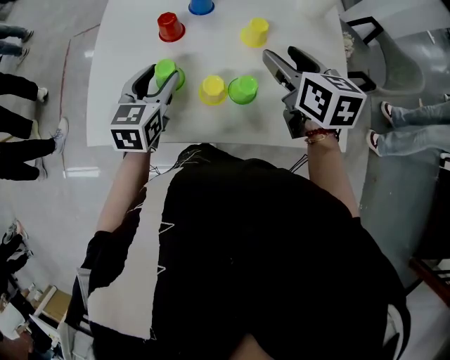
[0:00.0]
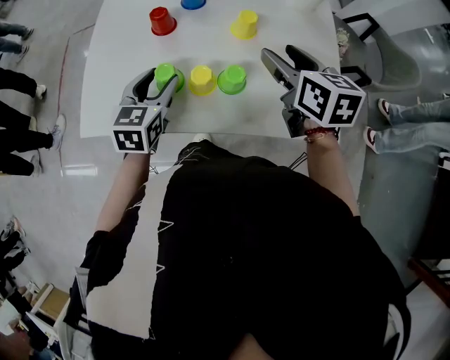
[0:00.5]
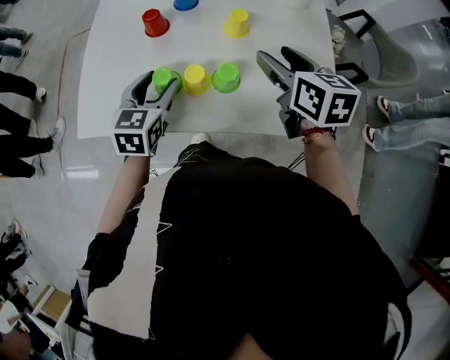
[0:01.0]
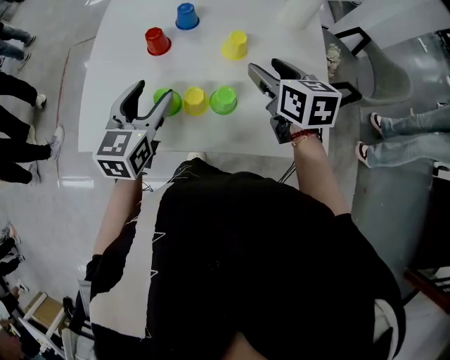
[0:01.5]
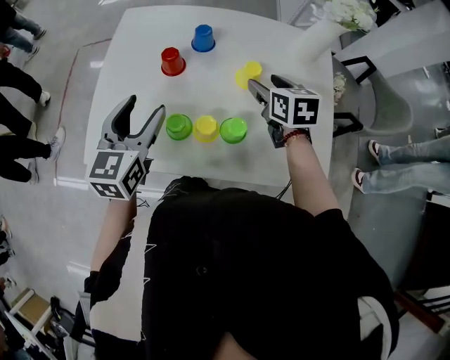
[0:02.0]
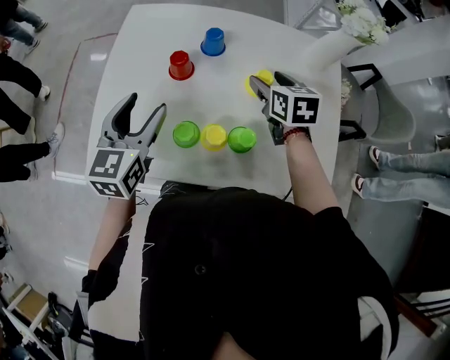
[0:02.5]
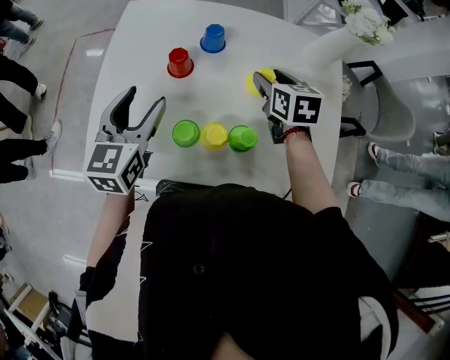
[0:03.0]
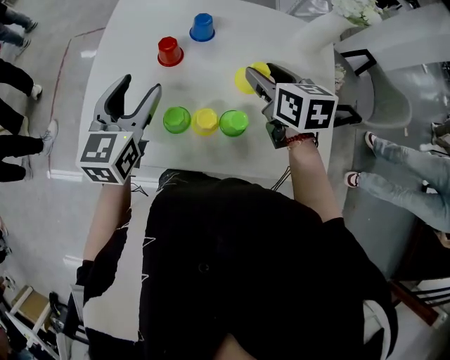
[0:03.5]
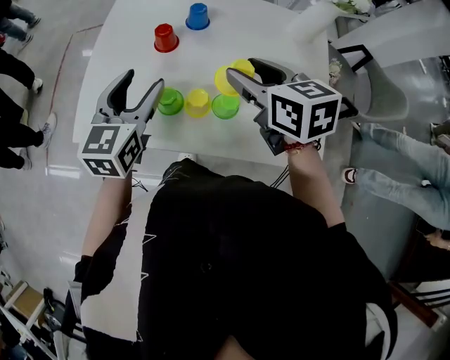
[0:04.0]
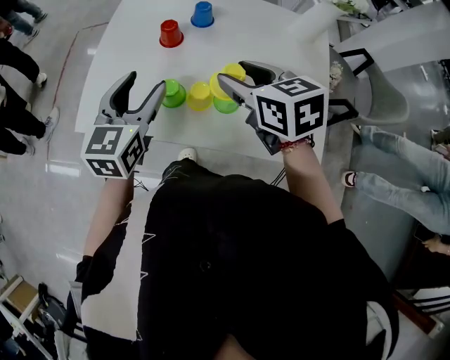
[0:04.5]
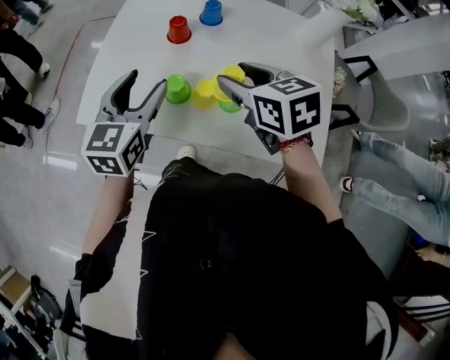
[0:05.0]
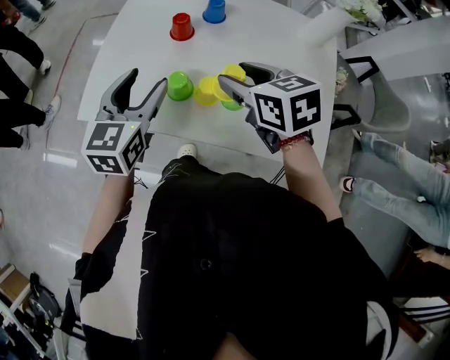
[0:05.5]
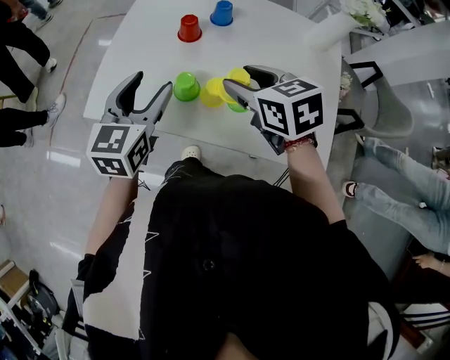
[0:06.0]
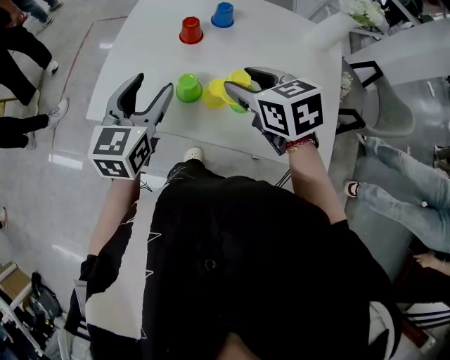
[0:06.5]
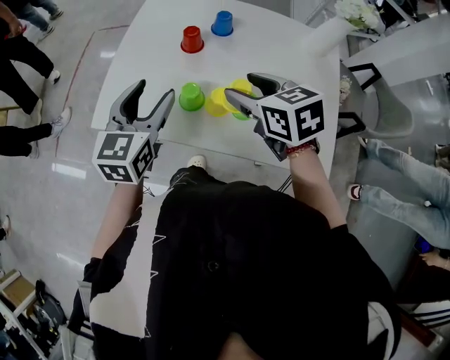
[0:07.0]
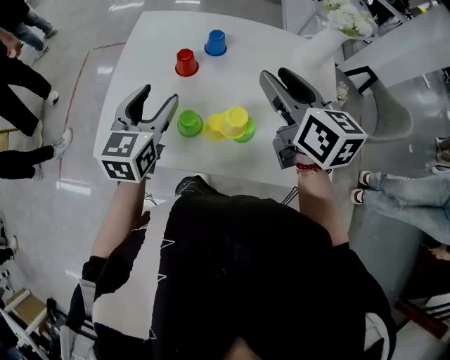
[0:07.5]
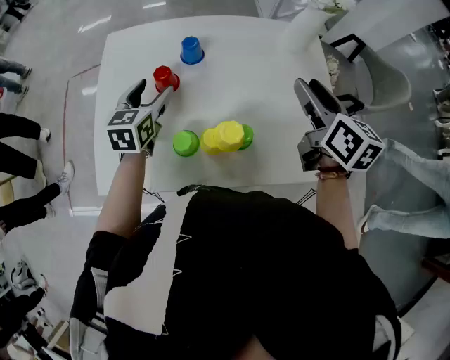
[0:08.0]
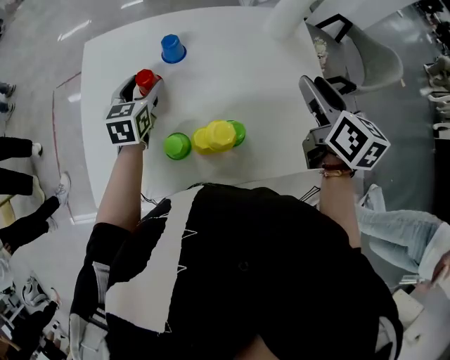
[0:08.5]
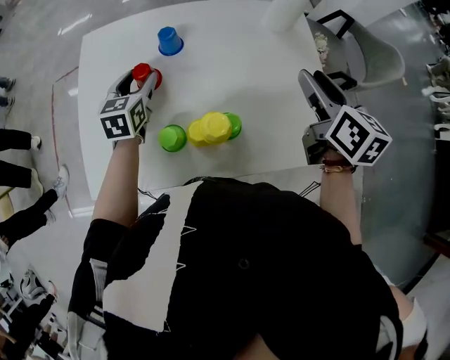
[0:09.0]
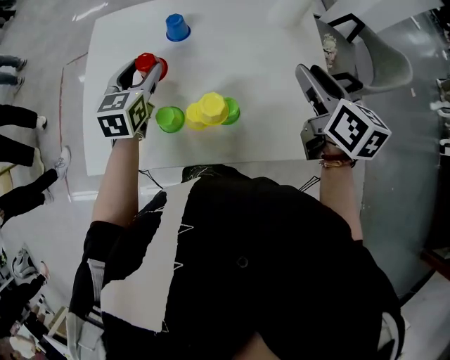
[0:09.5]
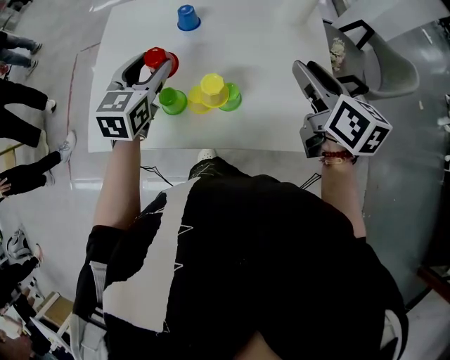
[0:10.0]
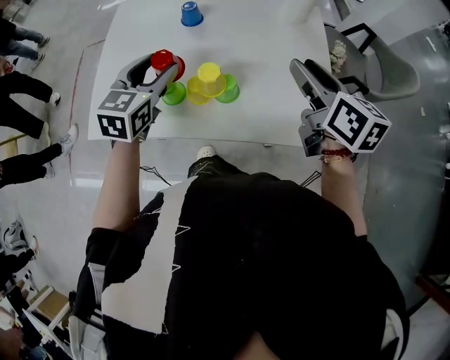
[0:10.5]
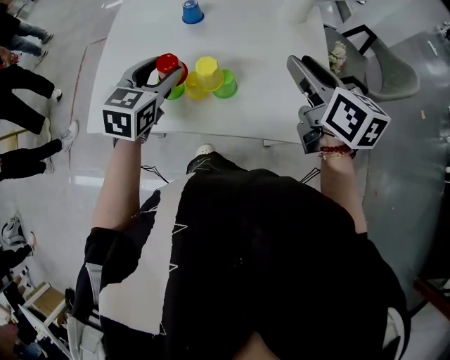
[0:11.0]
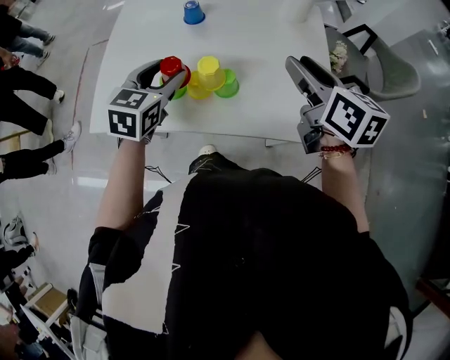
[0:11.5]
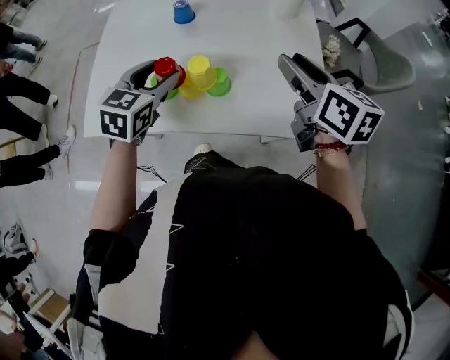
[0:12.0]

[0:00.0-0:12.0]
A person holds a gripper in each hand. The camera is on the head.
0:00.0 to 0:02.0: The right gripper heads forward and downward, covering some 10 cm; the left gripper moves upward, roughly 10 cm.
0:02.0 to 0:04.0: The right gripper heads upward, backward and to the left, covering some 15 cm.
0:04.0 to 0:06.0: The right gripper goes about 5 cm to the left. Meanwhile the left gripper moves some 5 cm.
0:06.0 to 0:08.0: The left gripper shifts by approximately 20 cm. Meanwhile the right gripper ends up some 20 cm from where it was, and changes its angle by some 50 degrees.
0:08.0 to 0:10.0: The right gripper moves backward, some 5 cm, while the left gripper heads backward, upward and to the right, covering approximately 10 cm.
0:10.0 to 0:12.0: The left gripper moves backward, approximately 5 cm.

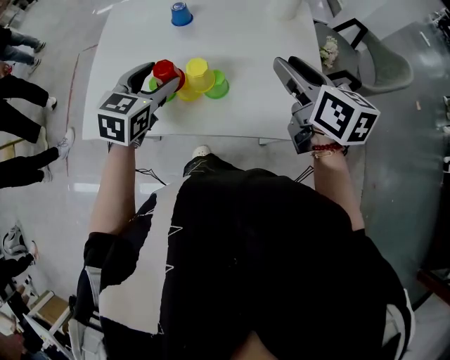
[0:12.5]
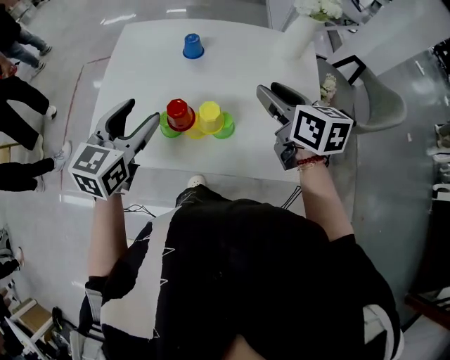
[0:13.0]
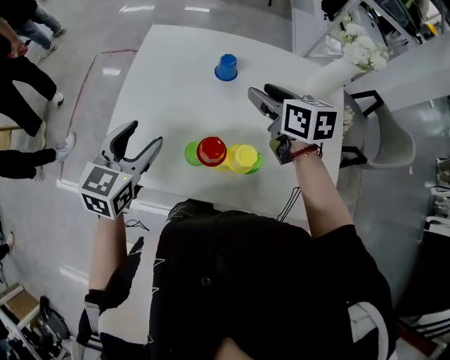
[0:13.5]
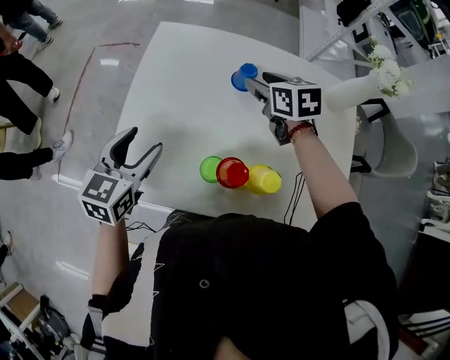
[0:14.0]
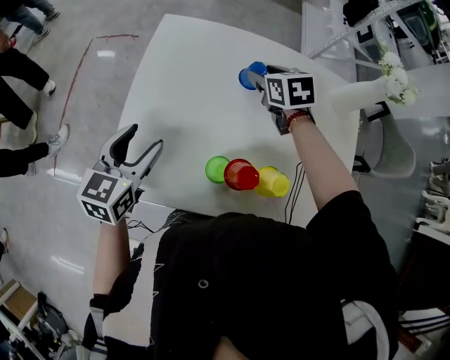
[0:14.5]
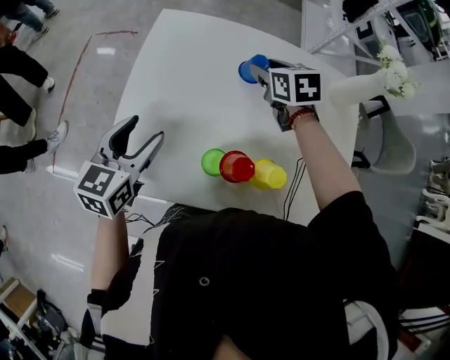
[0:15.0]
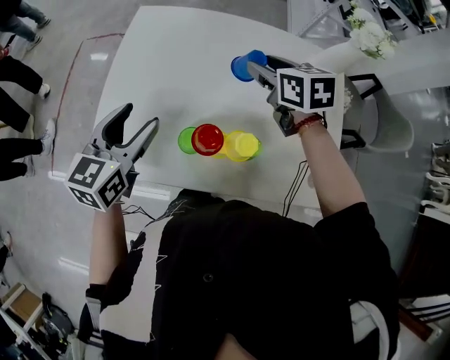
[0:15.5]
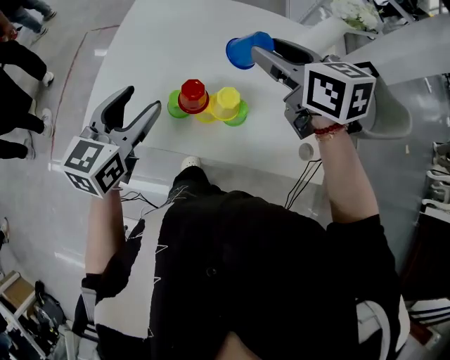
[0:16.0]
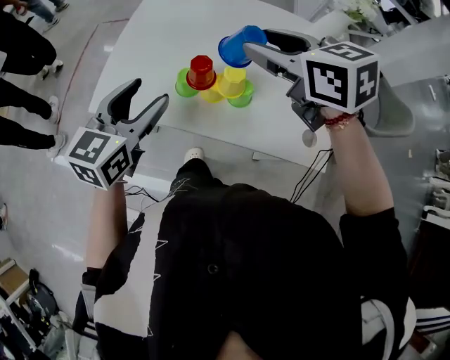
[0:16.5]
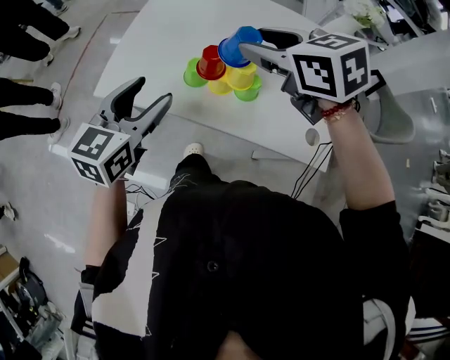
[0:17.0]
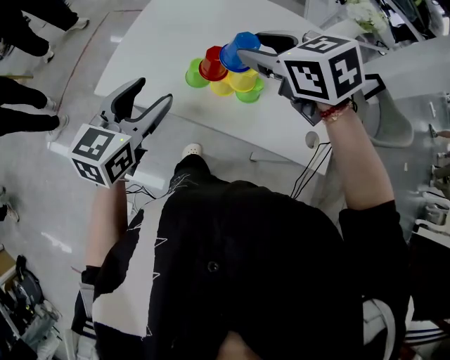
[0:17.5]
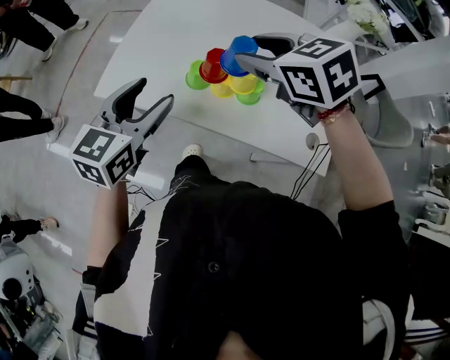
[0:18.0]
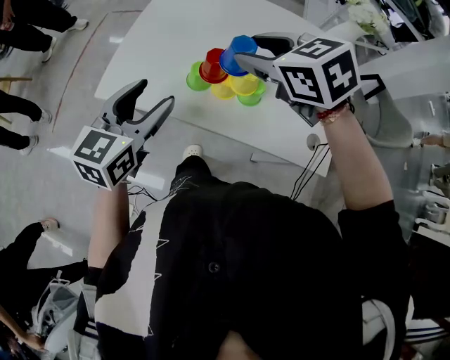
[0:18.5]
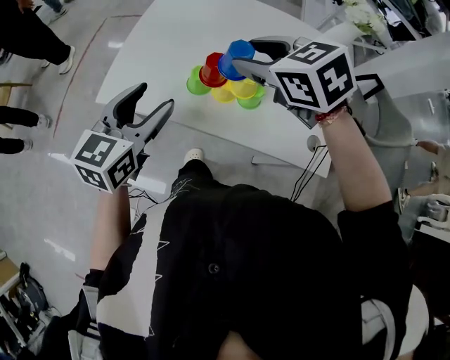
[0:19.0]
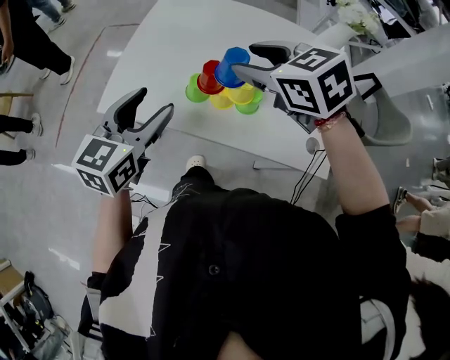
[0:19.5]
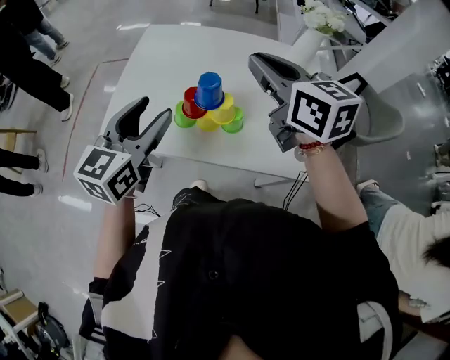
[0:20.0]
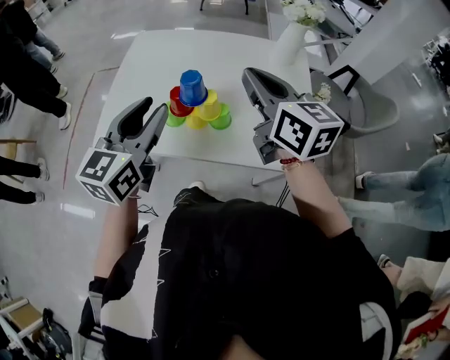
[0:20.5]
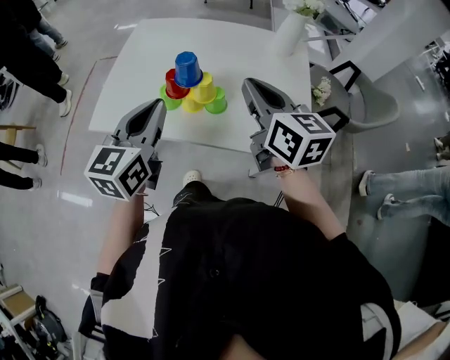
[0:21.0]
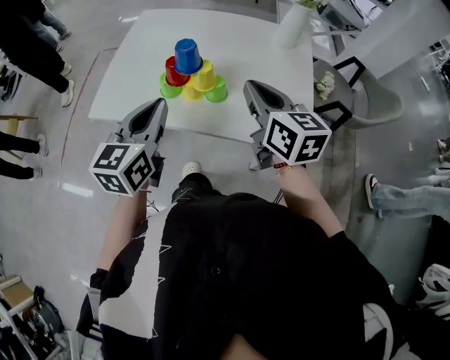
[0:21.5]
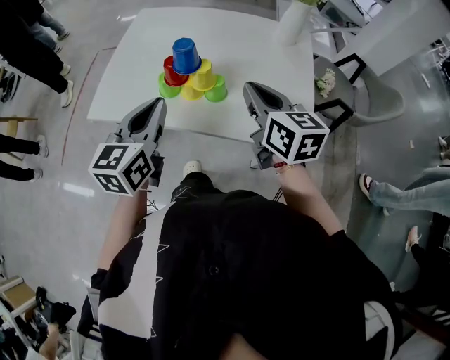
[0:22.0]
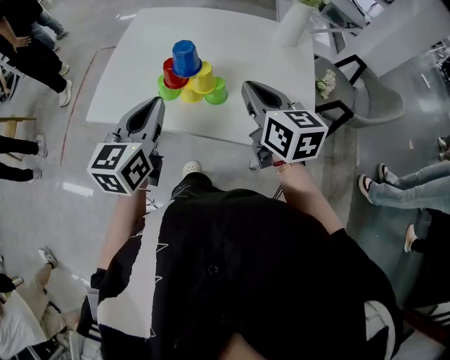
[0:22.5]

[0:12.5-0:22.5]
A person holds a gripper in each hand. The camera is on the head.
0:12.5 to 0:14.5: The right gripper goes approximately 40 cm forward, to the left and downward, and swivels approximately 40 degrees; the left gripper heads to the left, covering roughly 20 cm.
0:14.5 to 0:16.5: The left gripper is displaced backward, to the right and upward by approximately 20 cm. The right gripper moves backward and upward, about 30 cm, and changes its angle by some 30 degrees.
0:16.5 to 0:18.5: The right gripper changes place by about 5 cm.
0:18.5 to 0:20.5: The left gripper travels upward and to the right by roughly 10 cm, and closes its fingers; the right gripper travels to the right and upward by roughly 15 cm, points its fingers approximately 40 degrees further upward, and closes.
0:20.5 to 0:22.5: The right gripper goes some 10 cm downward; the left gripper travels downward by about 5 cm, and closes its fingers.

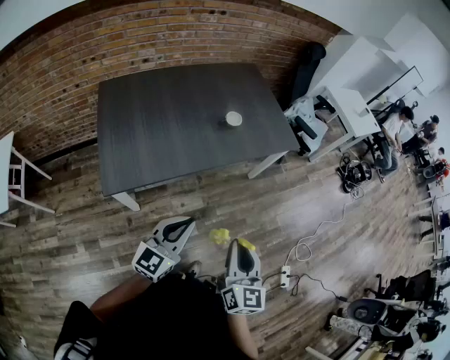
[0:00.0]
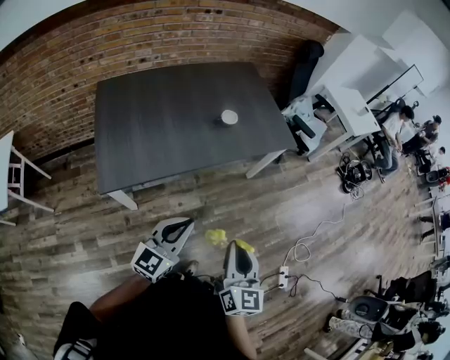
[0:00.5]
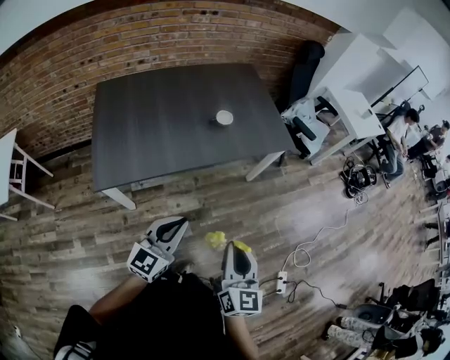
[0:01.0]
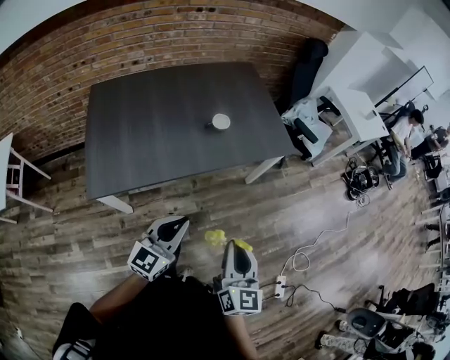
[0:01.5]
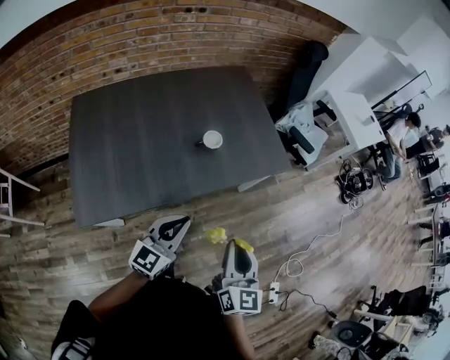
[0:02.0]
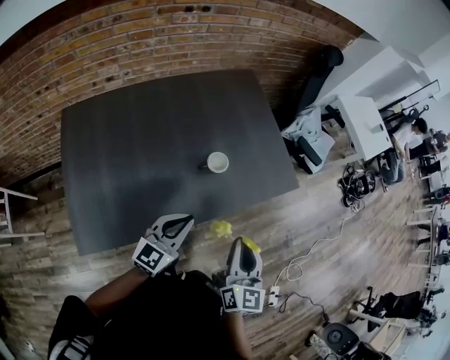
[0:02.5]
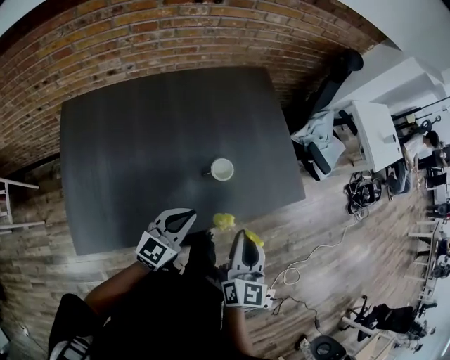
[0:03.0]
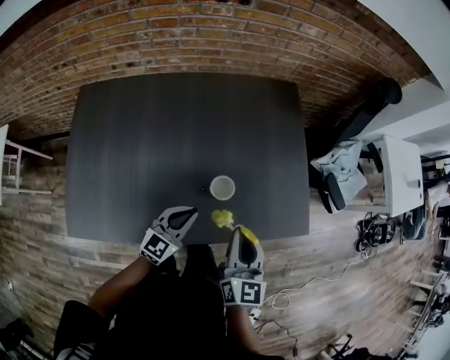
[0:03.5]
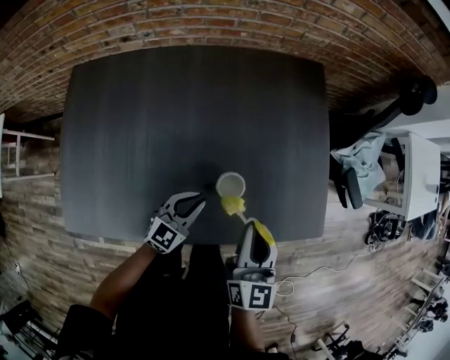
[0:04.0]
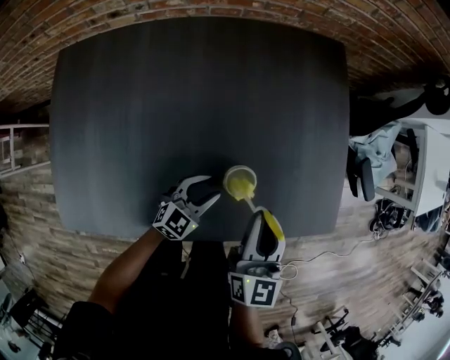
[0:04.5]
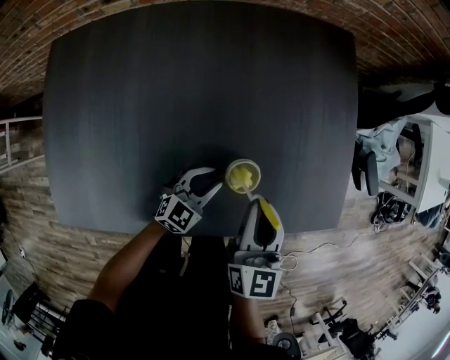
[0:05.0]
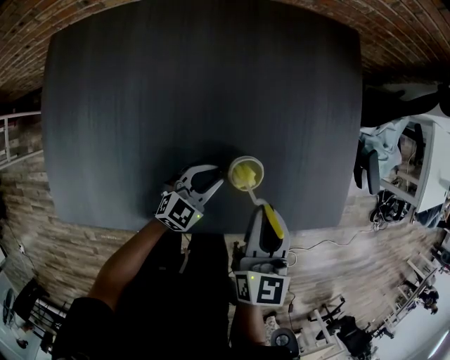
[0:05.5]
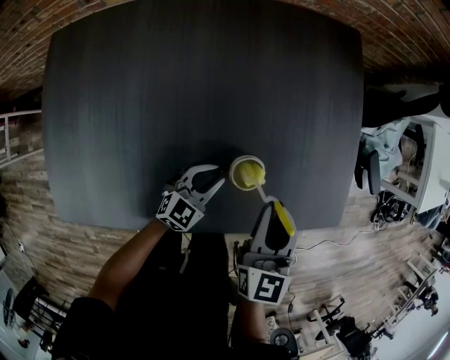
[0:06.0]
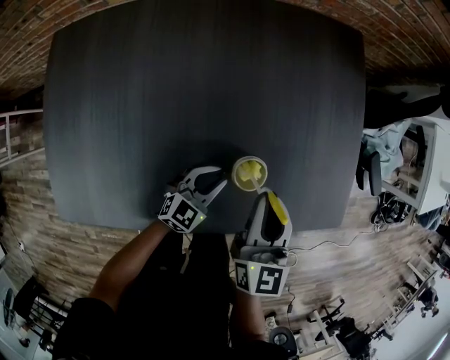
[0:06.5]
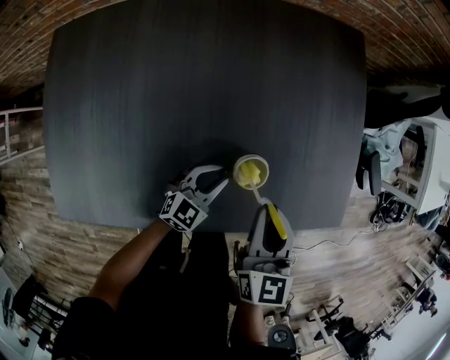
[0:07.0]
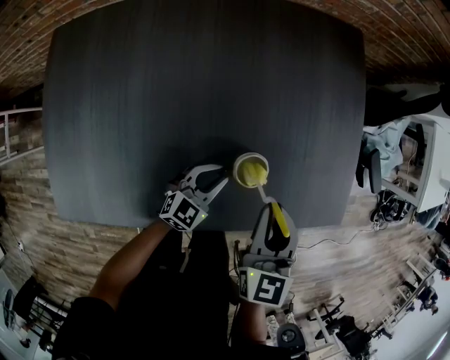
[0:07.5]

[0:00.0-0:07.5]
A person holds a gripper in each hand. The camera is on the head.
0:00.0 to 0:02.0: Both grippers move forward, approximately 25 cm.
0:02.0 to 0:04.0: The left gripper heads forward and downward, covering roughly 40 cm. Meanwhile the right gripper goes approximately 40 cm forward.
0:04.0 to 0:05.5: The two grippers go roughly 10 cm downward.
0:05.5 to 0:07.5: The grippers stay close to where they were, moving slightly.
